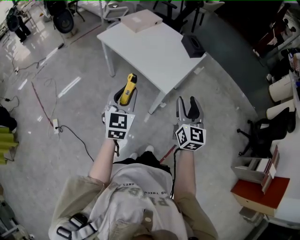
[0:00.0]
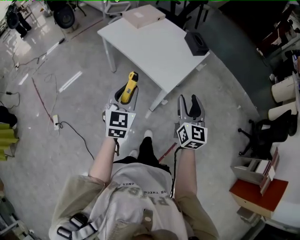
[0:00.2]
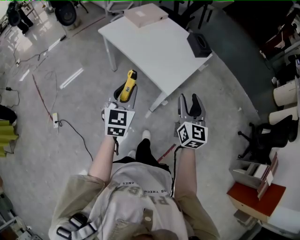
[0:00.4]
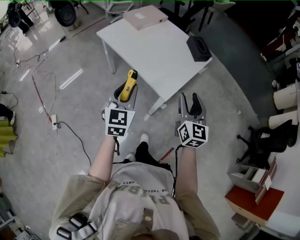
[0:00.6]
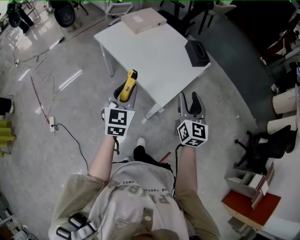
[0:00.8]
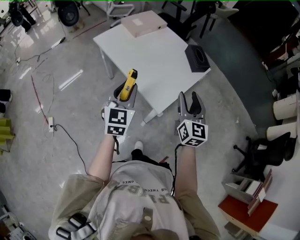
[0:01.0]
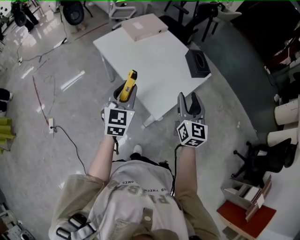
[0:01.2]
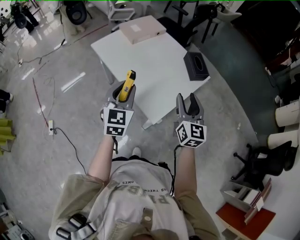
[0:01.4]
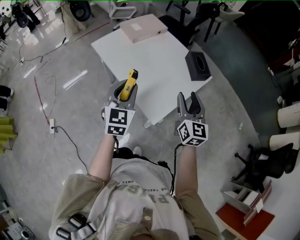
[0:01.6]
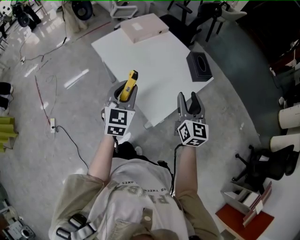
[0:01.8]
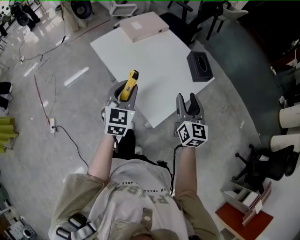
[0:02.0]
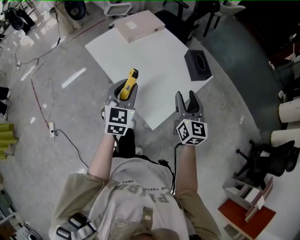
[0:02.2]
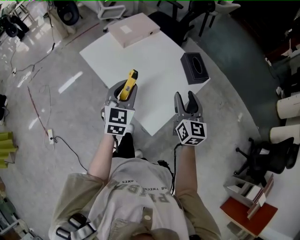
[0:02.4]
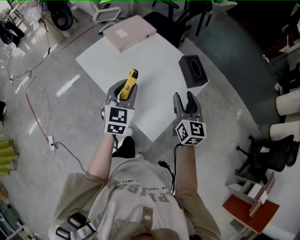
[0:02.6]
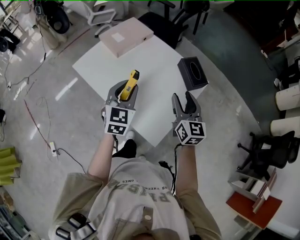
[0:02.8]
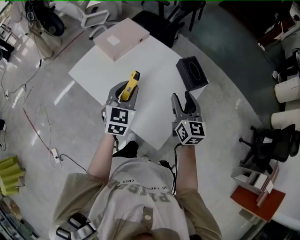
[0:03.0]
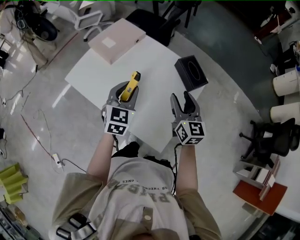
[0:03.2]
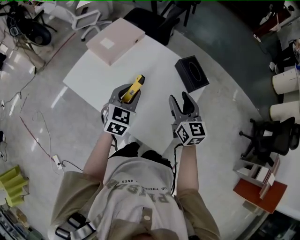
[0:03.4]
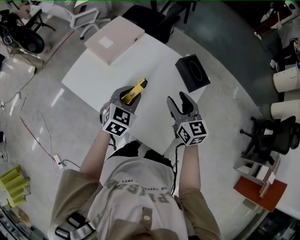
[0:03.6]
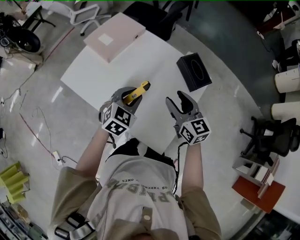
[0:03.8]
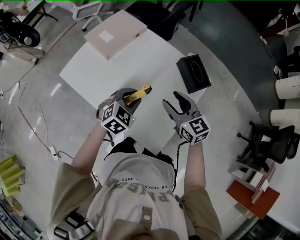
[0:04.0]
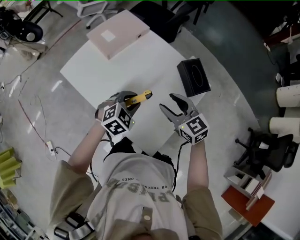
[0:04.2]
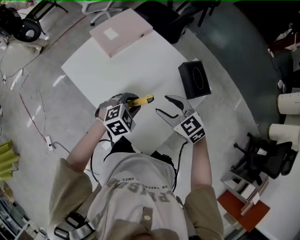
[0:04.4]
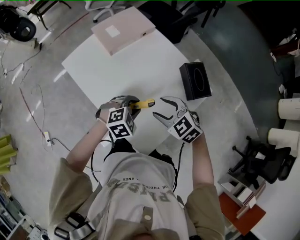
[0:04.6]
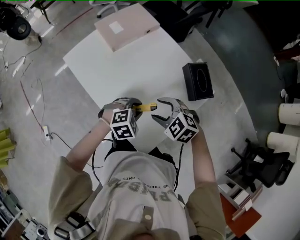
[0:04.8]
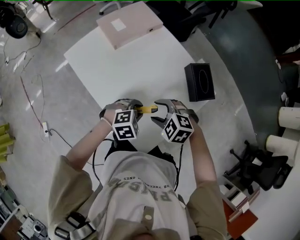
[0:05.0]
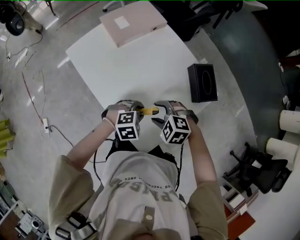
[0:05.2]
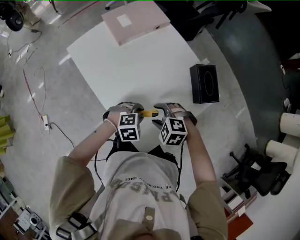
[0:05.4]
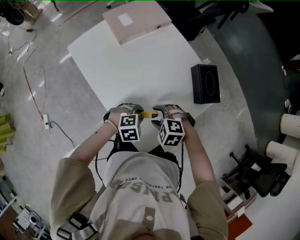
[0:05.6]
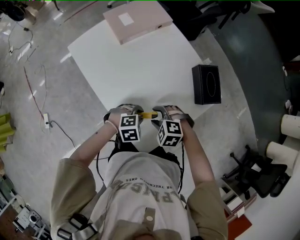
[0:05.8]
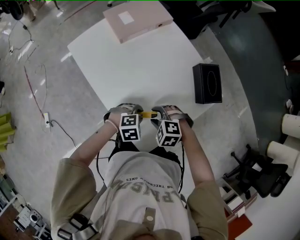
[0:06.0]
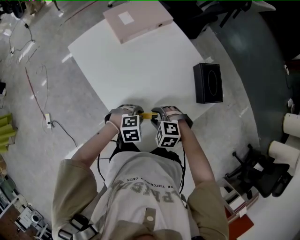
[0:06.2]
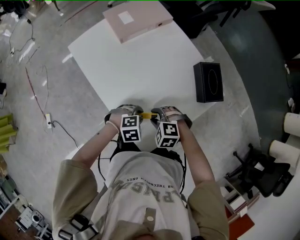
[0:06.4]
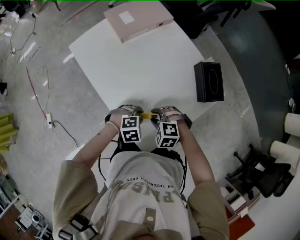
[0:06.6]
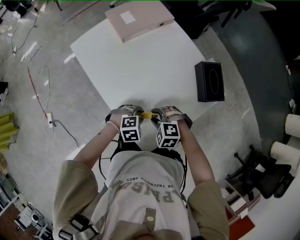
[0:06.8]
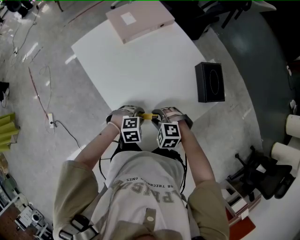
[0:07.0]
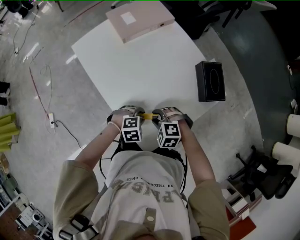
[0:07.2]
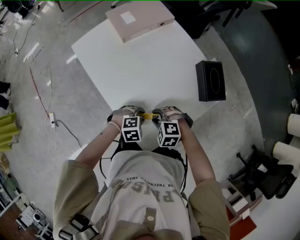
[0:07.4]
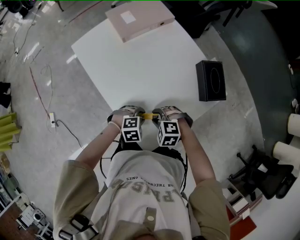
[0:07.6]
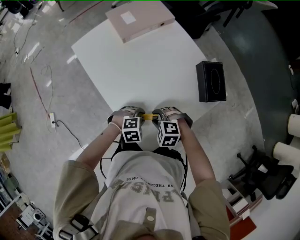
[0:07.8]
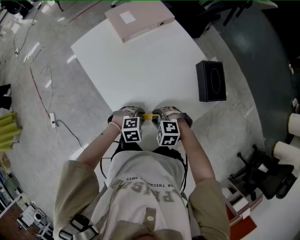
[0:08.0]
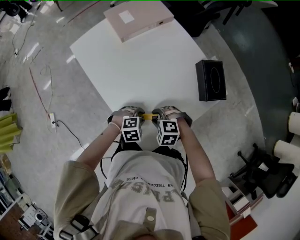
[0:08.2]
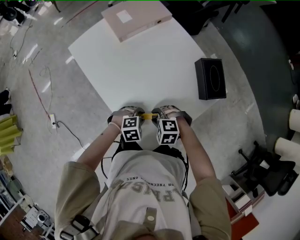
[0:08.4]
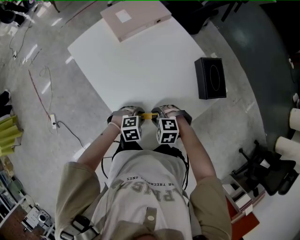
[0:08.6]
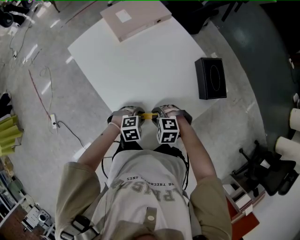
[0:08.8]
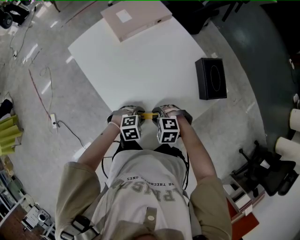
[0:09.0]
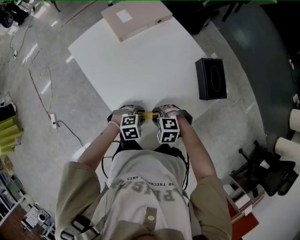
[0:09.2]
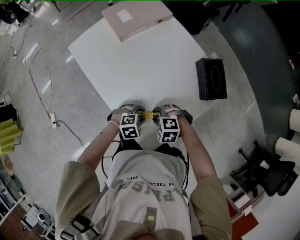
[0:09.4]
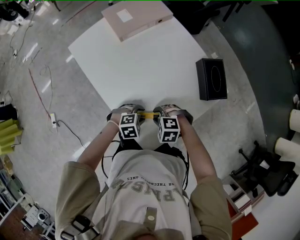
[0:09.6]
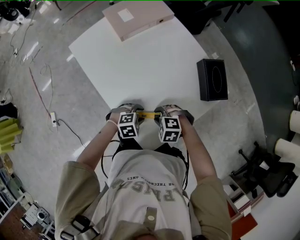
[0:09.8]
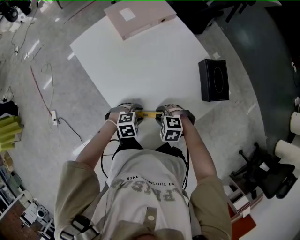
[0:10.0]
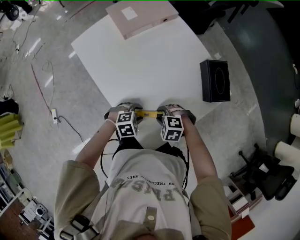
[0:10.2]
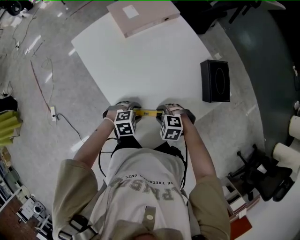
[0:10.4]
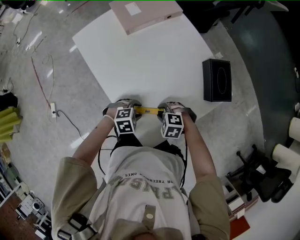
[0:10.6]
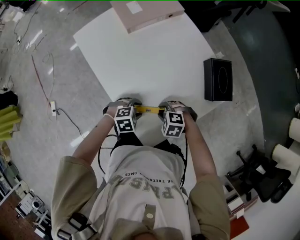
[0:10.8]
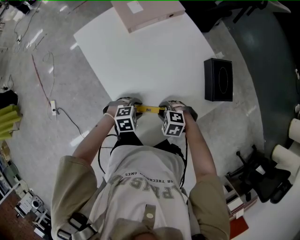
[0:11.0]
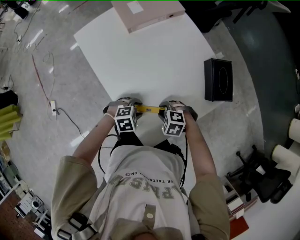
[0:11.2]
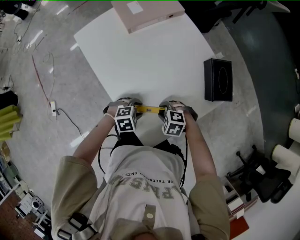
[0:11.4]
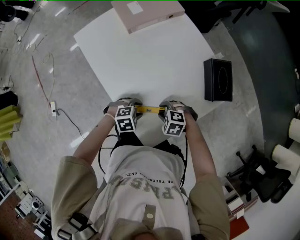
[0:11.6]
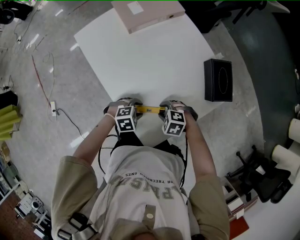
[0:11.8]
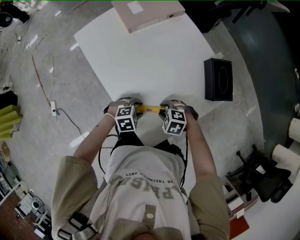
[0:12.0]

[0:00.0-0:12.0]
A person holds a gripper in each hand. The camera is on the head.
0:00.0 to 0:01.6: The two grippers go some 25 cm forward.
0:01.6 to 0:03.0: Both grippers move forward, about 20 cm.
0:03.0 to 0:04.4: The left gripper heads downward and to the right, covering roughly 15 cm, and points its fingers approximately 30 degrees further downward. Meanwhile the right gripper heads downward and to the left, covering about 10 cm, and changes its angle by some 50 degrees.
0:04.4 to 0:06.0: The grippers both shift downward by some 15 cm. The right gripper tips its fingers downward by approximately 30 degrees.
0:06.0 to 0:10.4: There are only small adjustments of the grippers.
0:10.4 to 0:12.0: The grippers stay close to where they were, moving slightly.

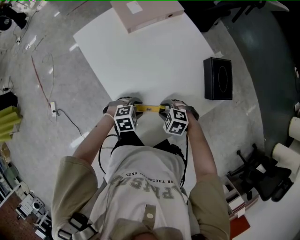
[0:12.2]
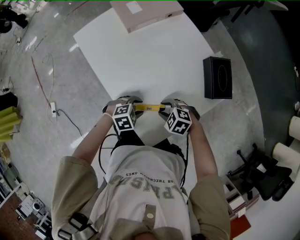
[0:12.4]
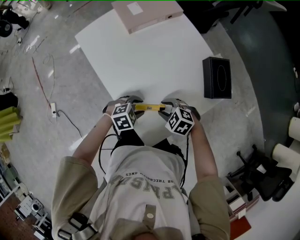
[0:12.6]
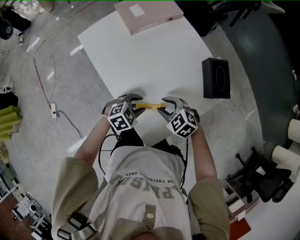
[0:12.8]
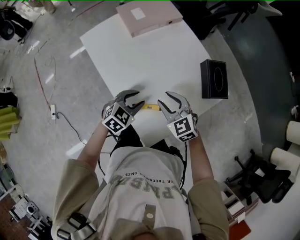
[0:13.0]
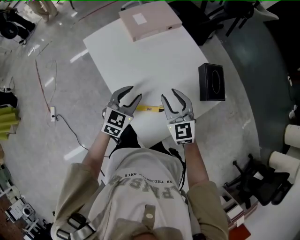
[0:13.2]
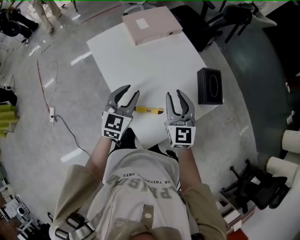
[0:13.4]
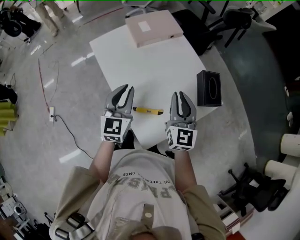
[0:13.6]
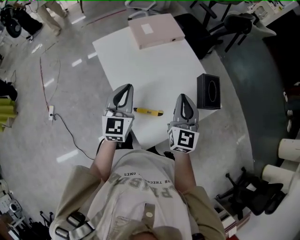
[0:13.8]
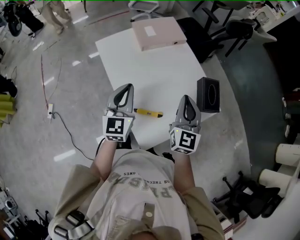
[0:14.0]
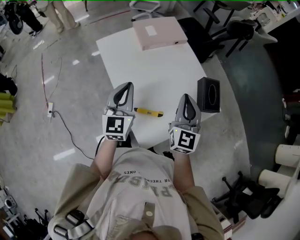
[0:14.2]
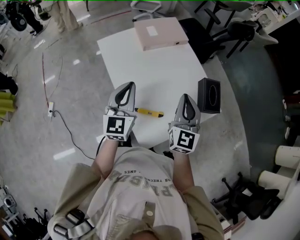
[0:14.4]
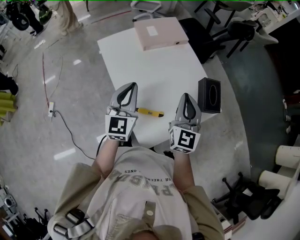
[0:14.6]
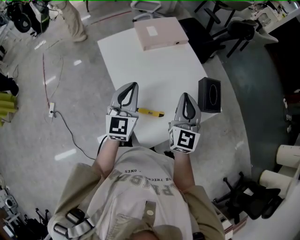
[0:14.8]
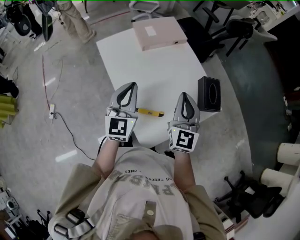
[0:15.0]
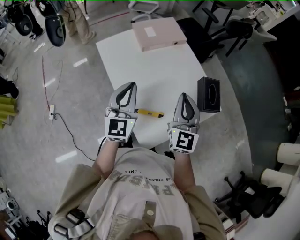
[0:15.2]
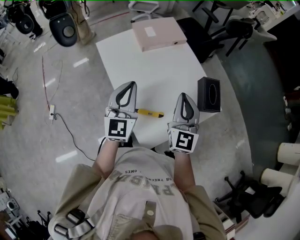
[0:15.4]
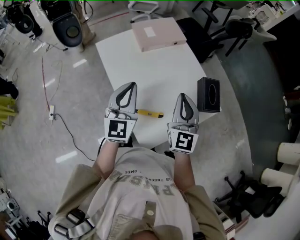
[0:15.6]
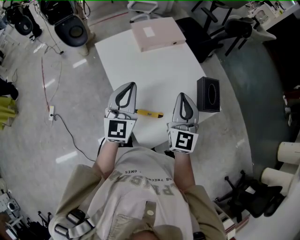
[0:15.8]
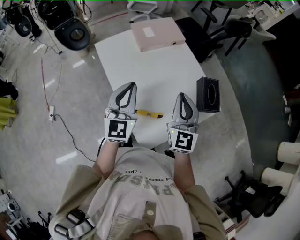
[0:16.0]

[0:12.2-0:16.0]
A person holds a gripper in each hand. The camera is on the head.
0:12.2 to 0:13.4: The two grippers go roughly 25 cm upward. The left gripper angles its fingers upward, by about 50 degrees; the right gripper tilts its fingers roughly 60 degrees upward.
0:13.4 to 0:14.8: The two grippers go some 10 cm upward. The left gripper closes up. Meanwhile the right gripper closes its fingers.
0:14.8 to 0:16.0: There are only small adjustments of the grippers.

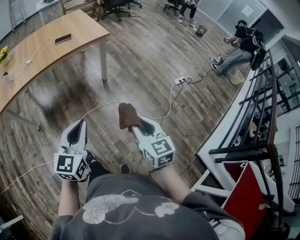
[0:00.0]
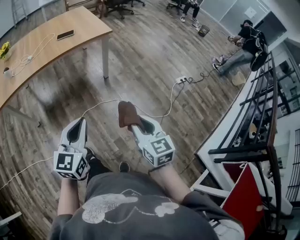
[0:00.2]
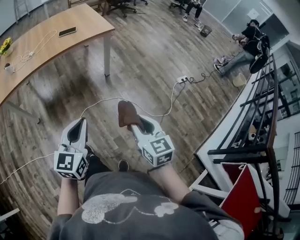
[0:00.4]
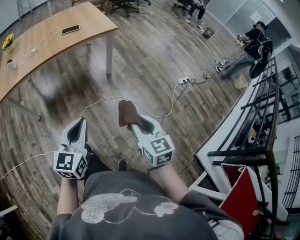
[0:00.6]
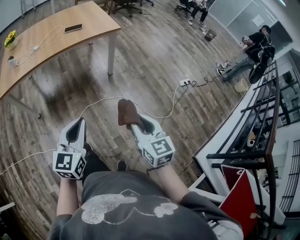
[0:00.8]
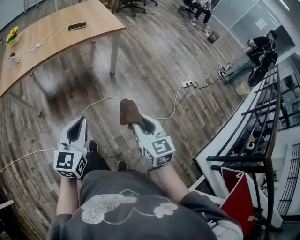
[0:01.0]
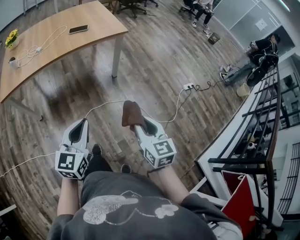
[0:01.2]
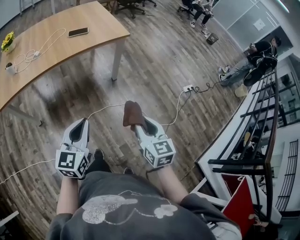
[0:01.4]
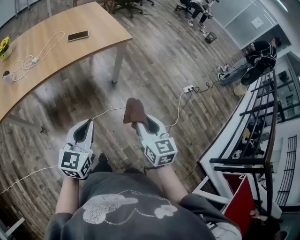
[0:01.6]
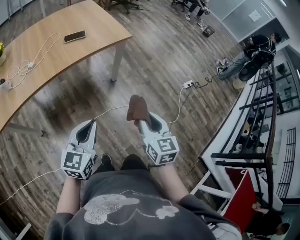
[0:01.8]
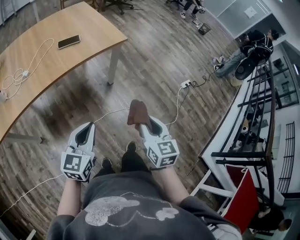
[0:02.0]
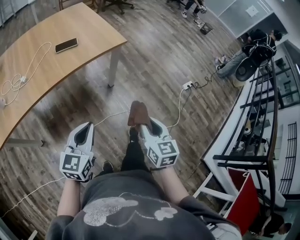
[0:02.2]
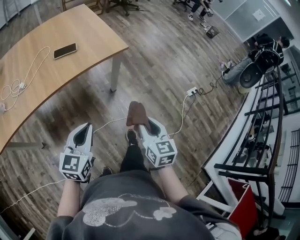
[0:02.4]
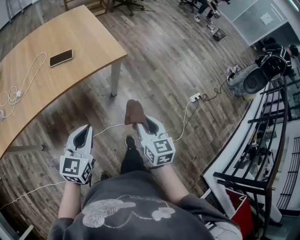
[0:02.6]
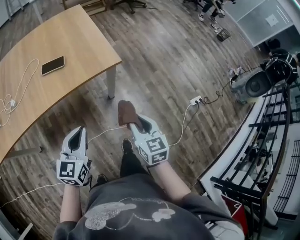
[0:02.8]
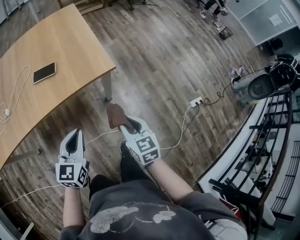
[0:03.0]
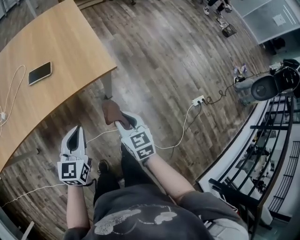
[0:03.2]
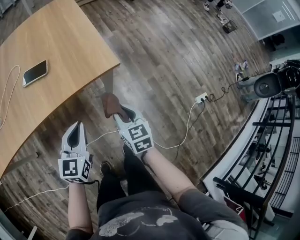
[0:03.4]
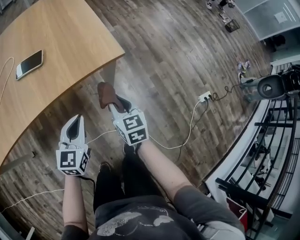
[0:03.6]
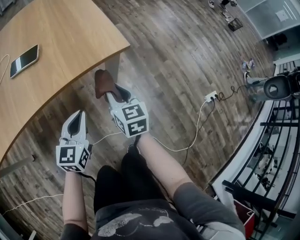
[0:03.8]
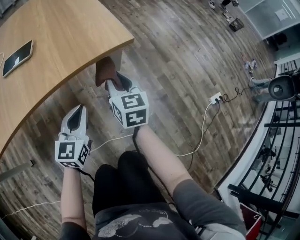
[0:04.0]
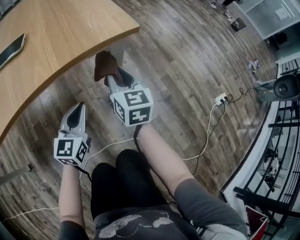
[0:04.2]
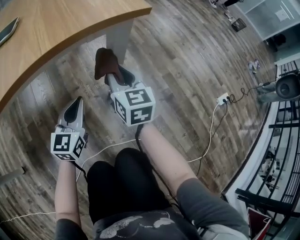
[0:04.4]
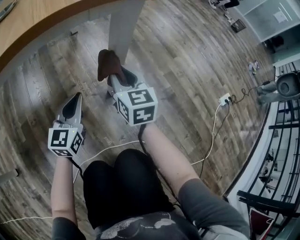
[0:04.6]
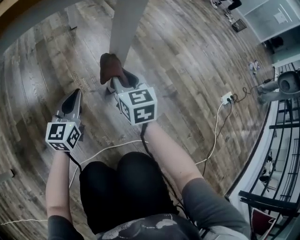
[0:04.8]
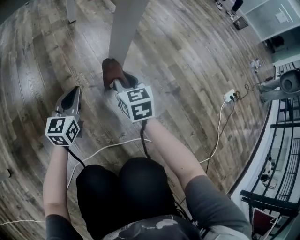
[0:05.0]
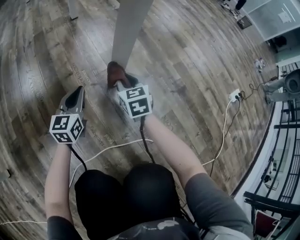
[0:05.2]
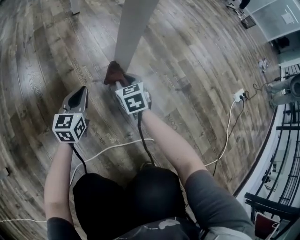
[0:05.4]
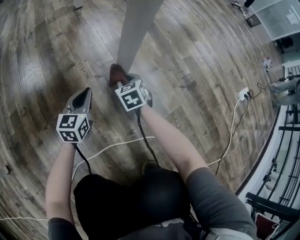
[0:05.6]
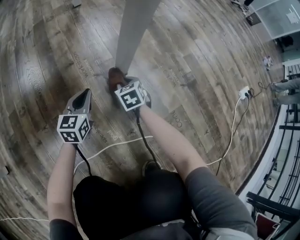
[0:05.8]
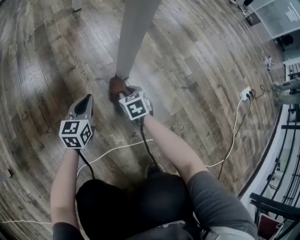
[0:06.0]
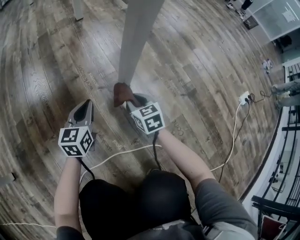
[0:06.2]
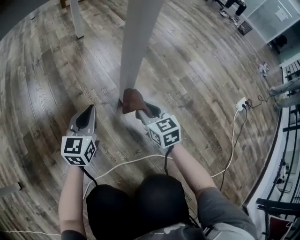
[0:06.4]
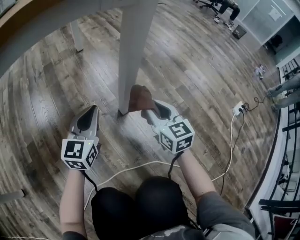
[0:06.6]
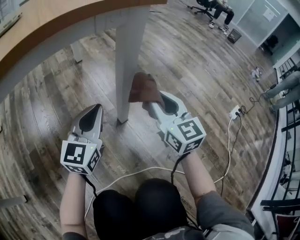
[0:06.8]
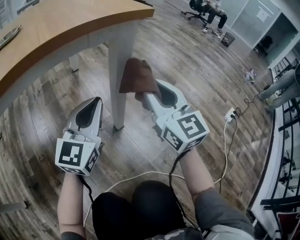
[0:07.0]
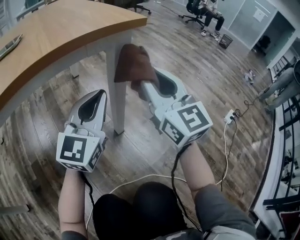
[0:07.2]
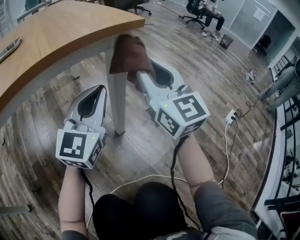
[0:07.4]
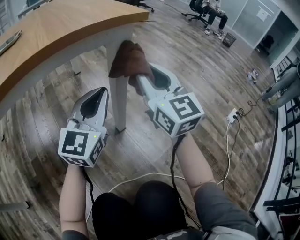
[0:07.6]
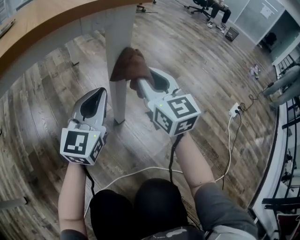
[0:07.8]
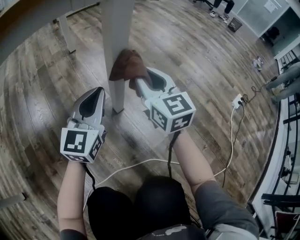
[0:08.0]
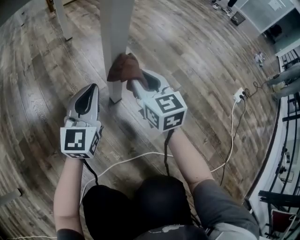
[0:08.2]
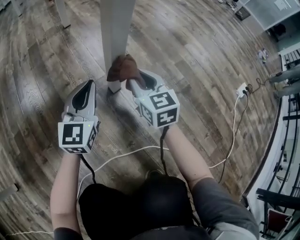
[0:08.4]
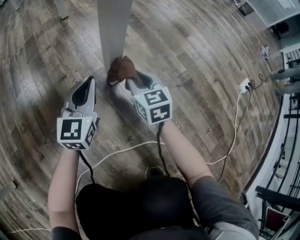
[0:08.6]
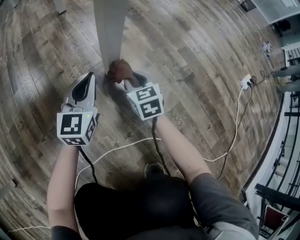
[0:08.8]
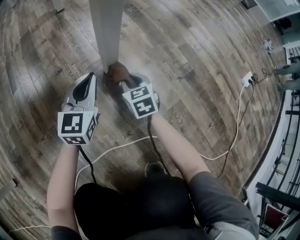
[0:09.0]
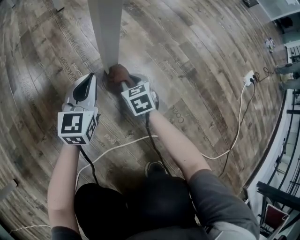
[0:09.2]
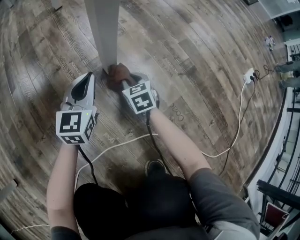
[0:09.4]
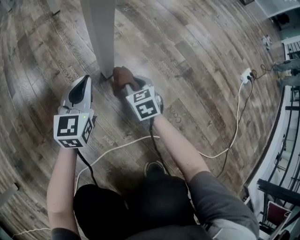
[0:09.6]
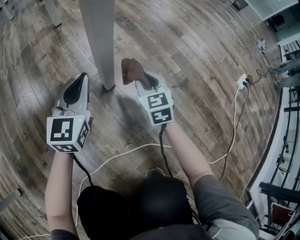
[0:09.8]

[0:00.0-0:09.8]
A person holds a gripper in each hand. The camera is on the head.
0:00.0 to 0:01.4: Both grippers travel together forward and to the left, approximately 15 cm.
0:01.4 to 0:02.8: Both grippers move forward, roughly 35 cm.
0:02.8 to 0:04.2: The left gripper is displaced downward and forward by about 40 cm. The right gripper heads forward and downward, covering about 40 cm.
0:04.2 to 0:05.6: Both grippers travel together downward, some 40 cm. The right gripper tilts its fingers some 30 degrees downward.
0:05.6 to 0:07.0: The two grippers go roughly 40 cm upward. The right gripper tilts its fingers about 50 degrees upward, while the left gripper swivels roughly 30 degrees.
0:07.0 to 0:08.4: The two grippers go approximately 25 cm downward. The right gripper rotates roughly 20 degrees.
0:08.4 to 0:09.8: The left gripper reaches roughly 10 cm downward, then returns. Meanwhile the right gripper heads to the right, covering about 5 cm, and reaches about 20 cm downward, then returns.
